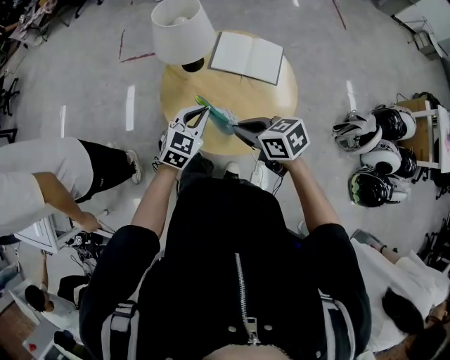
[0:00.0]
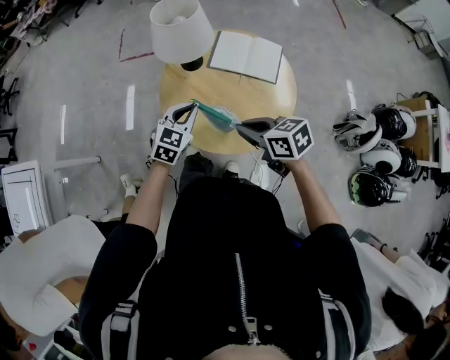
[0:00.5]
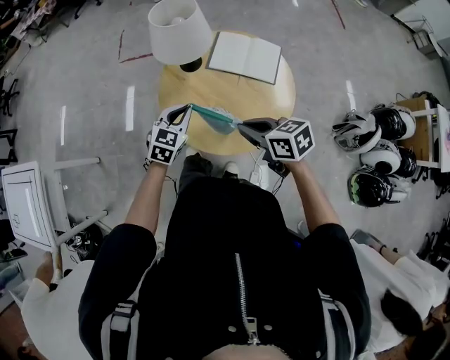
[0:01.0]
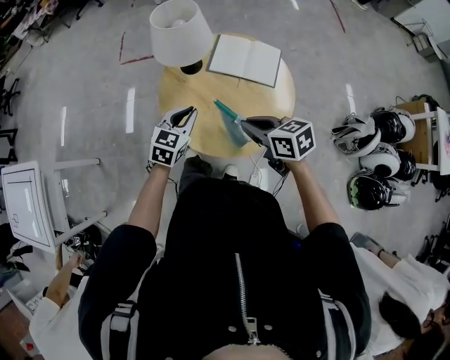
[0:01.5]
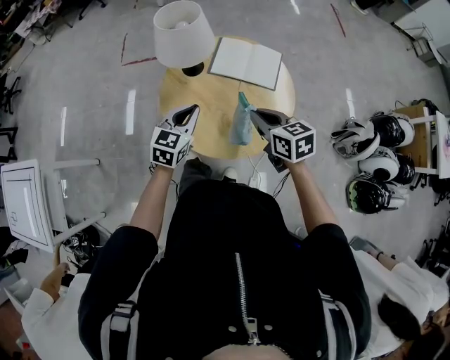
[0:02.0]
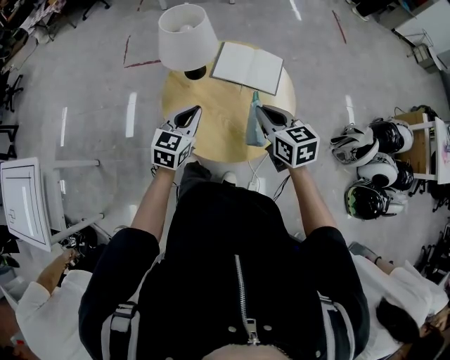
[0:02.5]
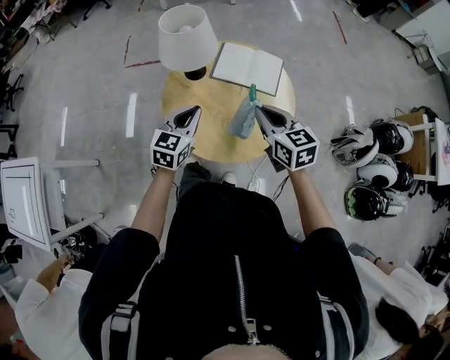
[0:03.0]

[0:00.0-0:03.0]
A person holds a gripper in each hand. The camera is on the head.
0:00.0 to 0:01.5: The grippers stay close to where they were, moving slightly.
0:01.5 to 0:03.0: The right gripper ends up approximately 10 cm from where it was, and swivels roughly 30 degrees.

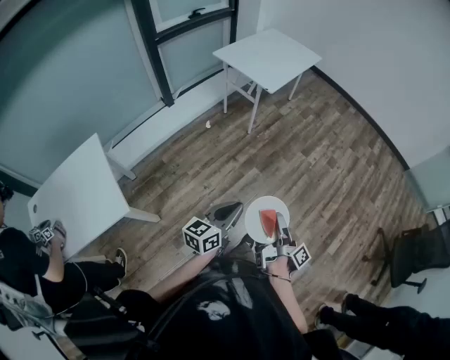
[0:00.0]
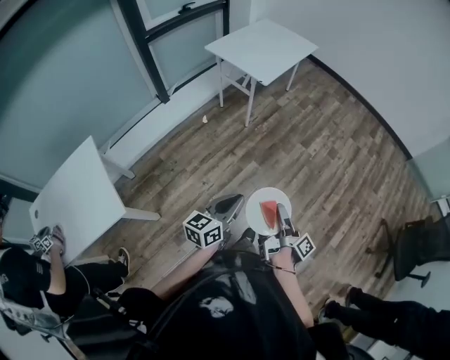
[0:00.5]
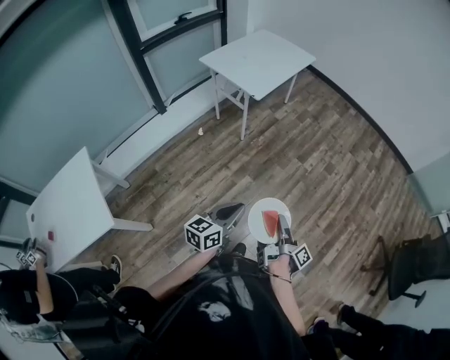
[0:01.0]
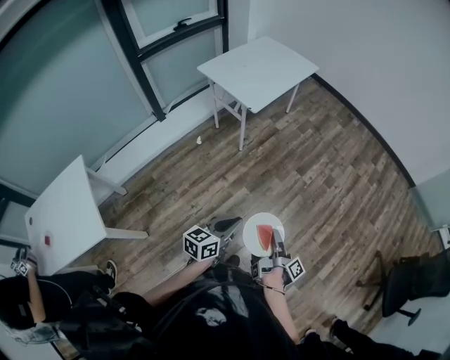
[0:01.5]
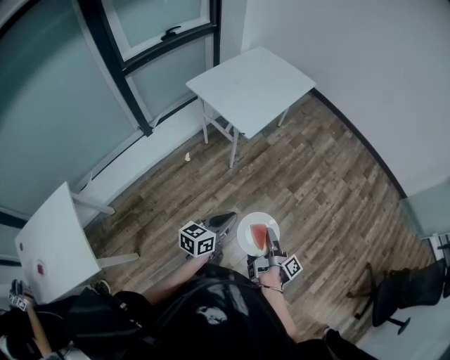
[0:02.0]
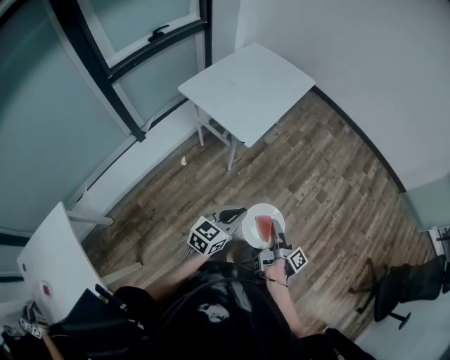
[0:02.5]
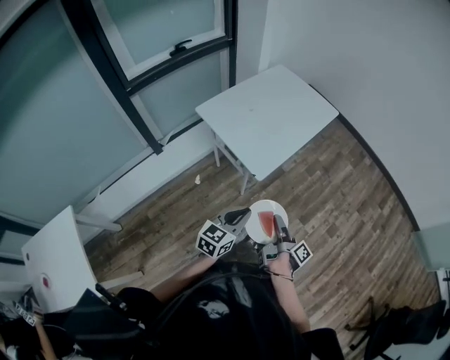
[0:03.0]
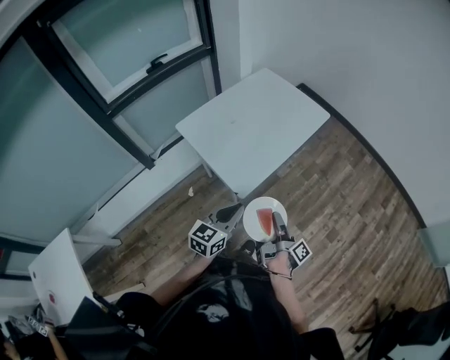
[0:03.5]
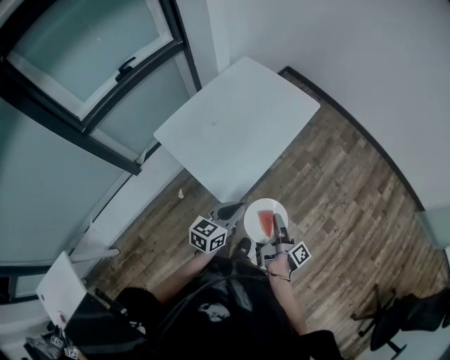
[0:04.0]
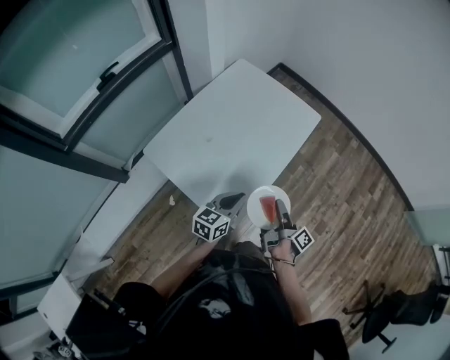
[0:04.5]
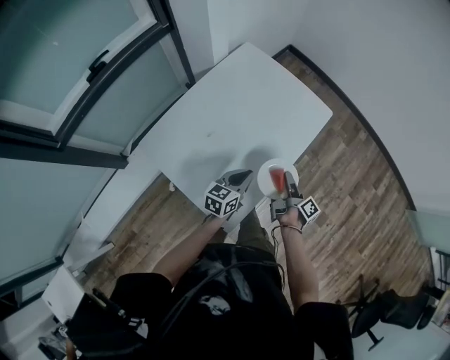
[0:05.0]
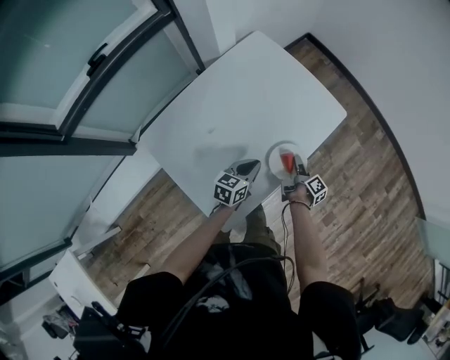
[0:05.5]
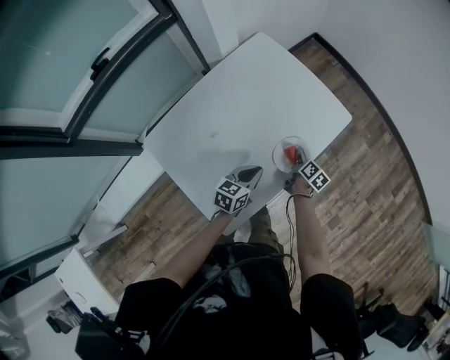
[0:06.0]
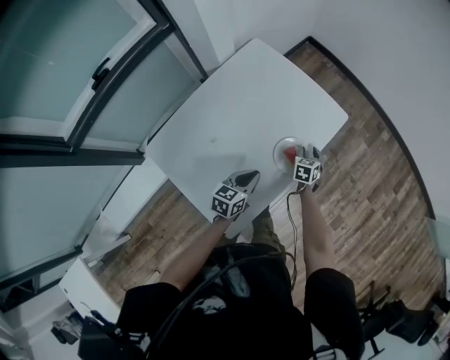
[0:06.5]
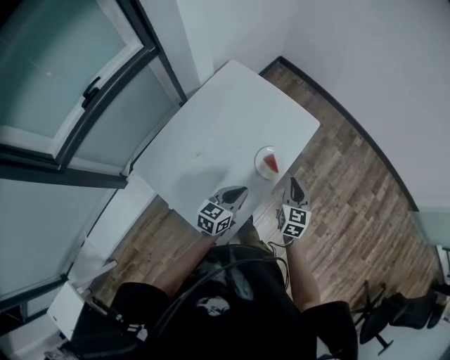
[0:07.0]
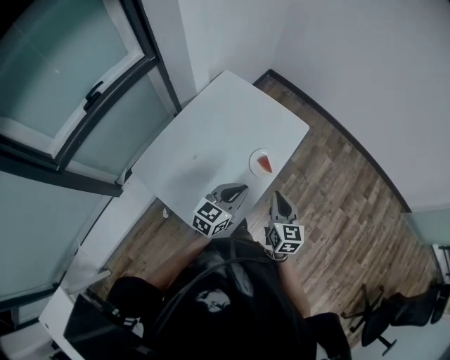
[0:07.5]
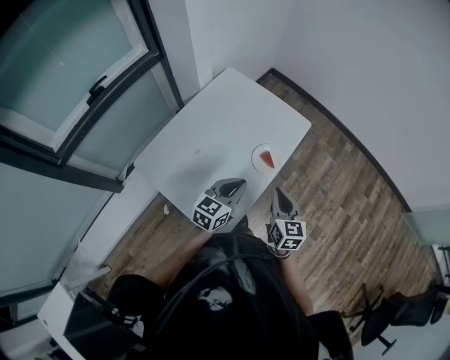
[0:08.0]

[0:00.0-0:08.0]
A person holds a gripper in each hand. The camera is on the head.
0:00.0 to 0:02.0: The left gripper ends up approximately 35 cm from where it was.
0:02.0 to 0:04.0: The left gripper shifts by about 50 cm.
0:04.0 to 0:06.0: The left gripper shifts by some 35 cm.
0:06.0 to 0:08.0: The left gripper shifts approximately 15 cm upward, and rotates about 20 degrees.

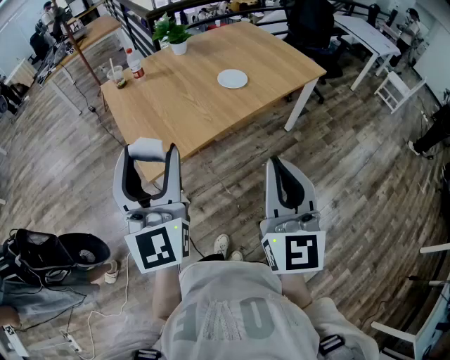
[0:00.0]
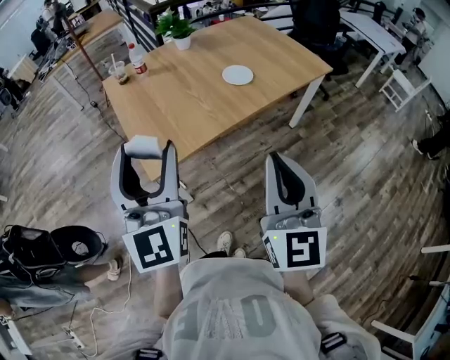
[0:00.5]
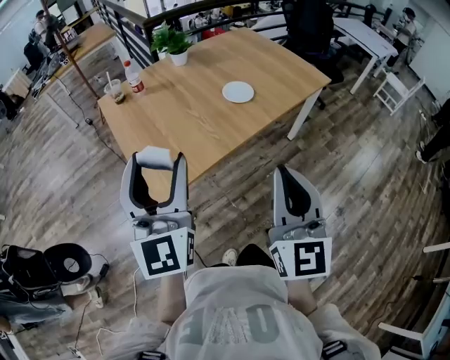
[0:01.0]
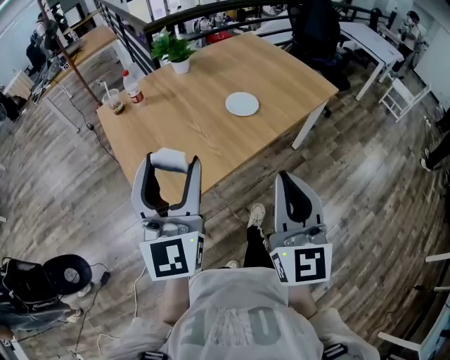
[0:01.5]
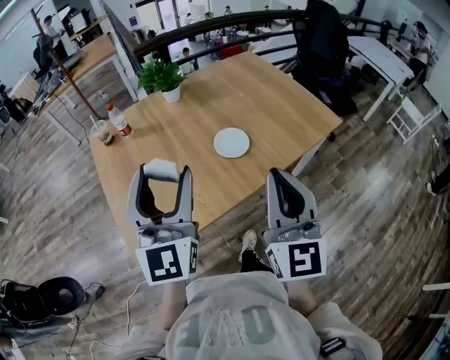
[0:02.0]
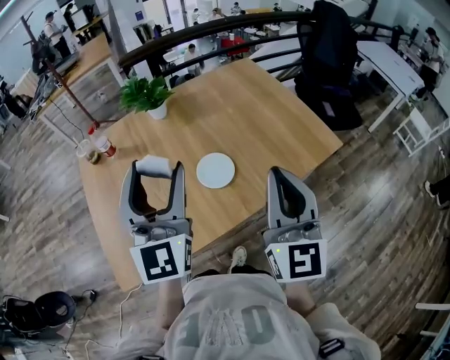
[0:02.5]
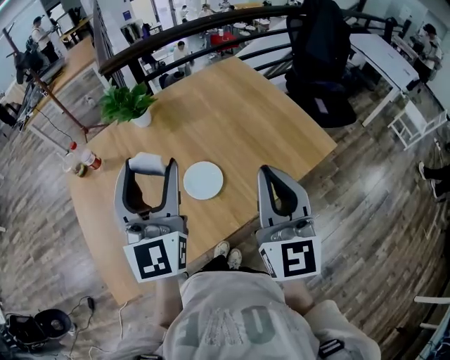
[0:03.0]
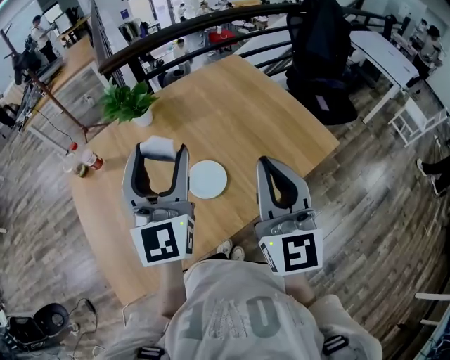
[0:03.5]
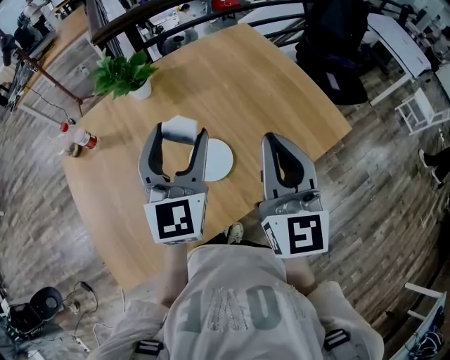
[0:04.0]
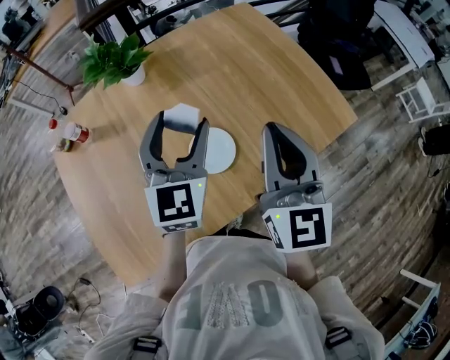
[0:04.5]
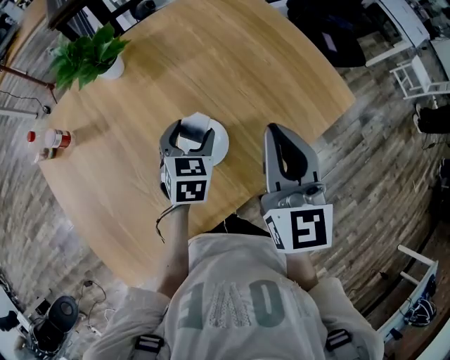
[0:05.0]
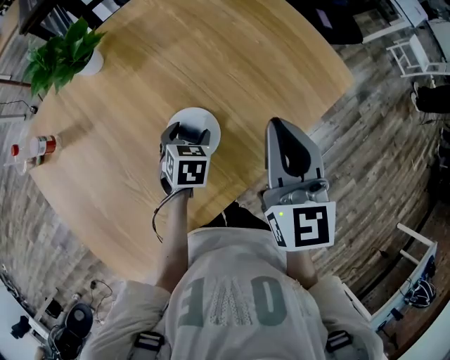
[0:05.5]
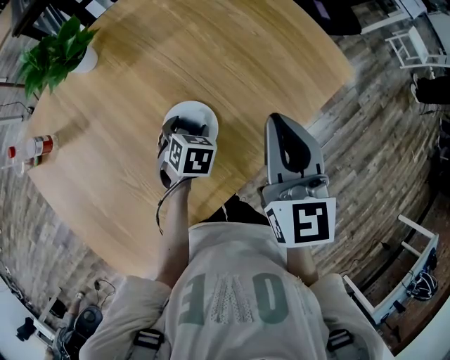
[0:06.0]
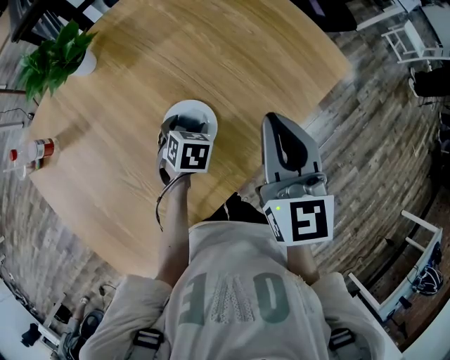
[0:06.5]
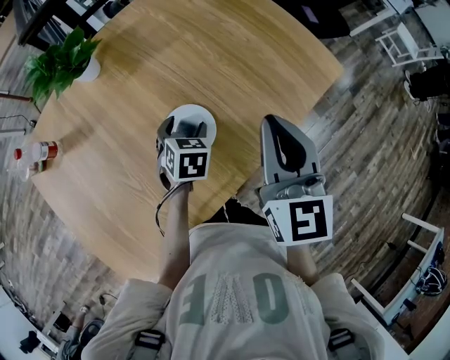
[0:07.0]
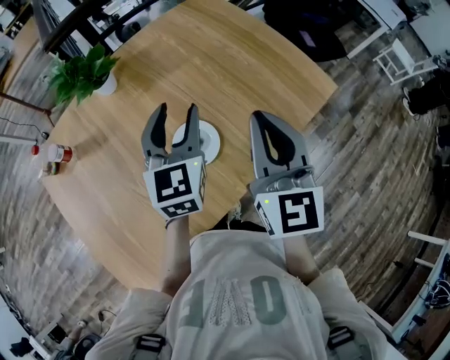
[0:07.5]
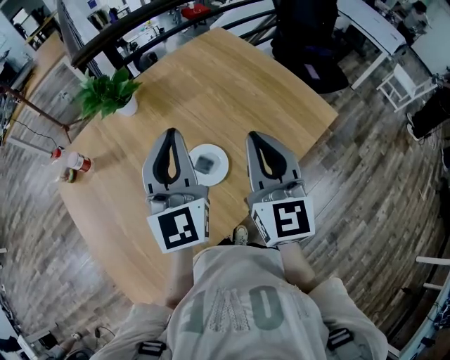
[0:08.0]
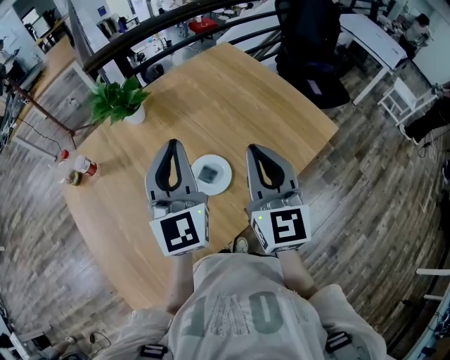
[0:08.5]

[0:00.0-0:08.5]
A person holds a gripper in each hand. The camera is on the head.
0:00.0 to 0:02.0: Both grippers move forward, approximately 30 cm.
0:02.0 to 0:04.0: The right gripper heads forward, covering about 25 cm. Meanwhile the left gripper shifts roughly 30 cm forward and to the right.
0:04.0 to 0:06.5: The left gripper is displaced downward by roughly 35 cm, and angles its fingers downward, by about 60 degrees, while the right gripper shifts approximately 10 cm downward, and changes its angle by approximately 20 degrees.
0:06.5 to 0:08.5: The right gripper heads upward, covering about 10 cm; the left gripper moves upward, roughly 35 cm, tips its fingers upward by some 70 degrees, and closes.

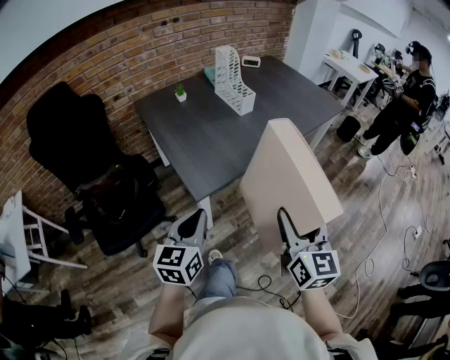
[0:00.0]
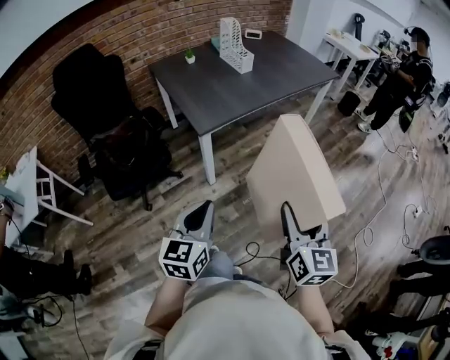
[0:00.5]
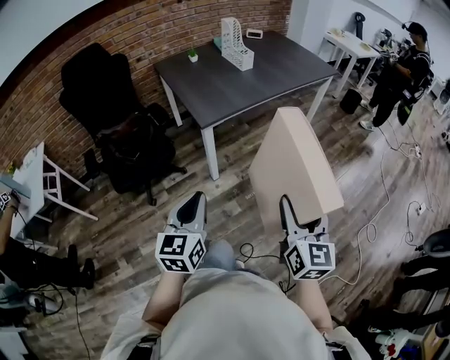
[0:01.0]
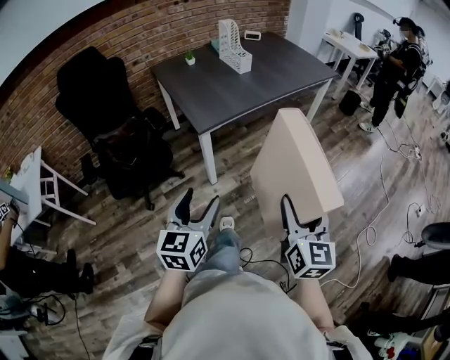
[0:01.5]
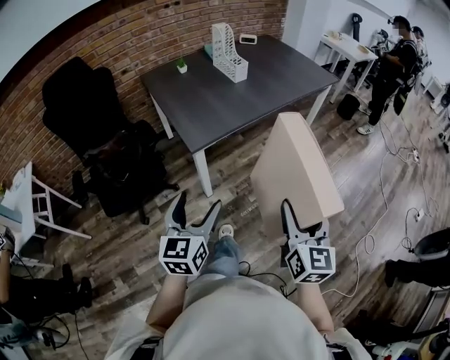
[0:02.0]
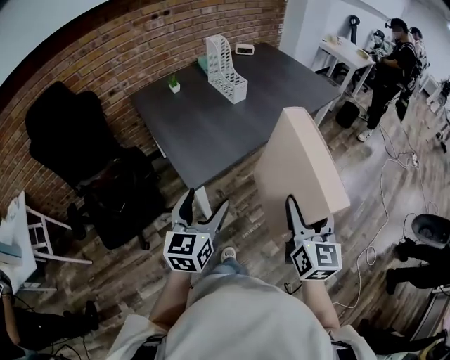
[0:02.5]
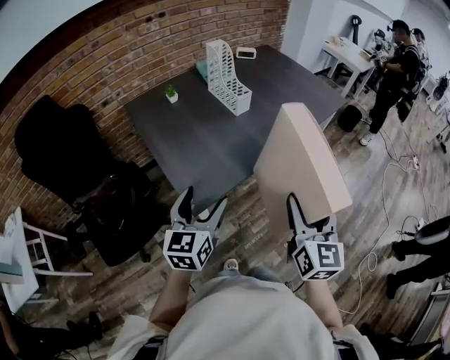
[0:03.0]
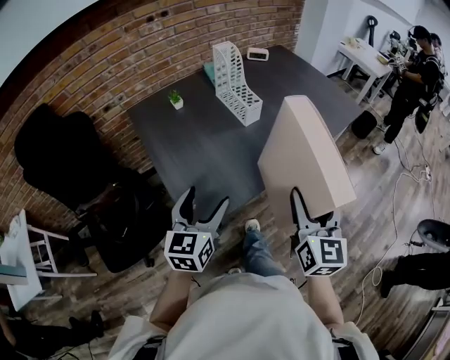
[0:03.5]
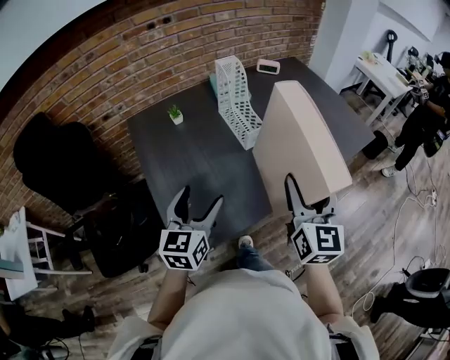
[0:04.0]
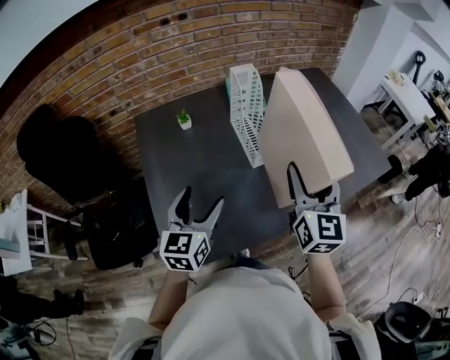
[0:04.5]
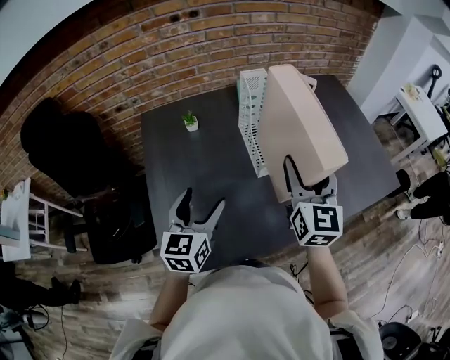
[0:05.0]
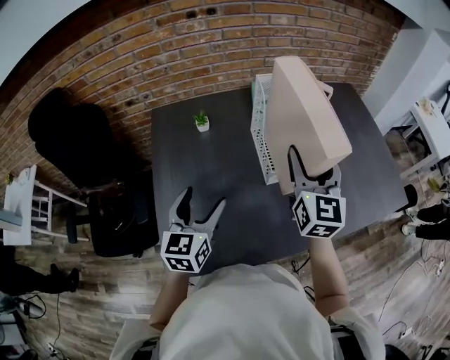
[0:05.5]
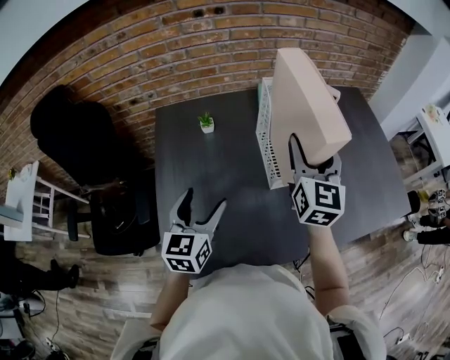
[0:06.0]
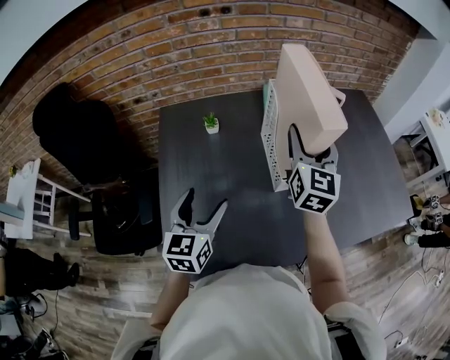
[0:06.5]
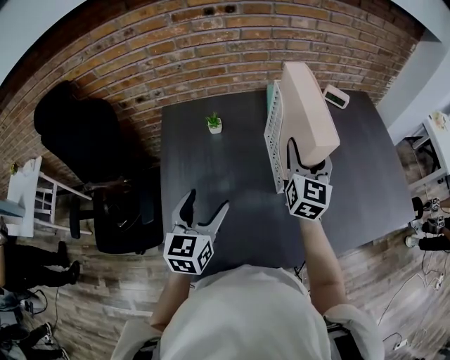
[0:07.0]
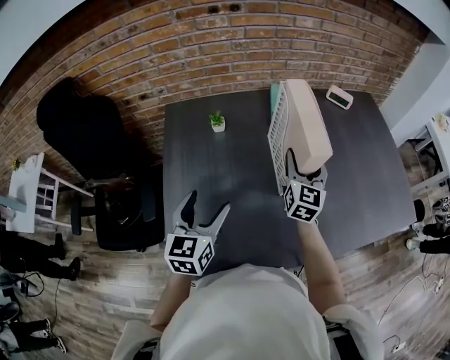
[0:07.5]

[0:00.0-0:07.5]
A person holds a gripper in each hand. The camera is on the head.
0:00.0 to 0:02.0: The right gripper travels backward and to the right by roughly 15 cm. The left gripper heads backward, covering approximately 15 cm, and opens up.
0:02.0 to 0:04.0: Both grippers are carried forward, about 50 cm.
0:04.0 to 0:05.5: The right gripper heads forward, covering roughly 25 cm, while the left gripper moves forward, roughly 10 cm.
0:05.5 to 0:07.5: The right gripper goes some 15 cm downward and forward.
